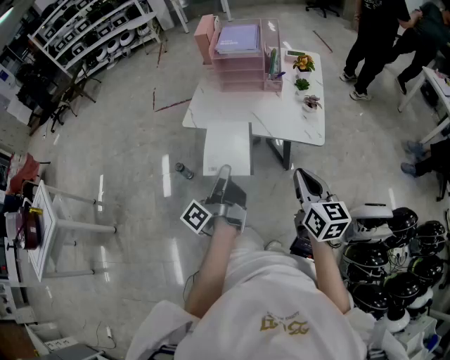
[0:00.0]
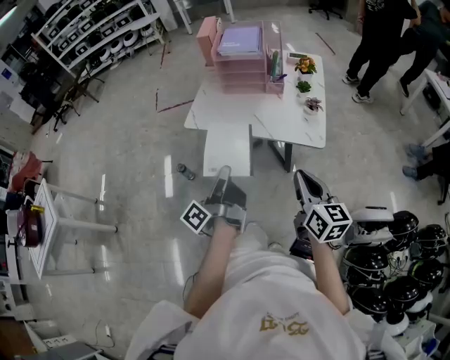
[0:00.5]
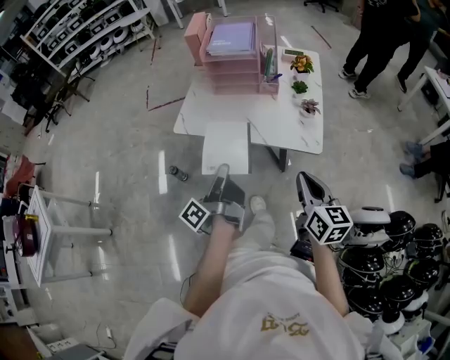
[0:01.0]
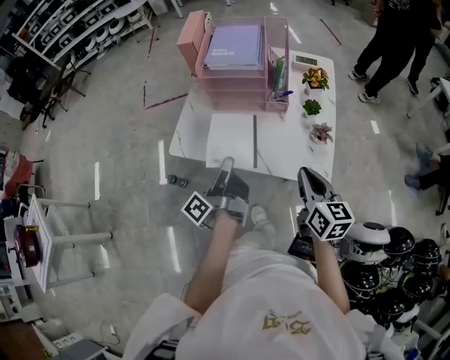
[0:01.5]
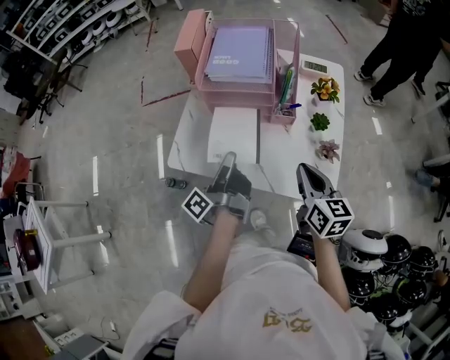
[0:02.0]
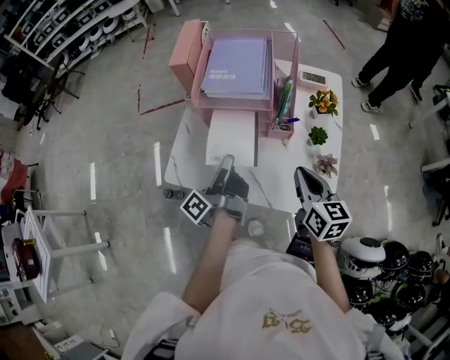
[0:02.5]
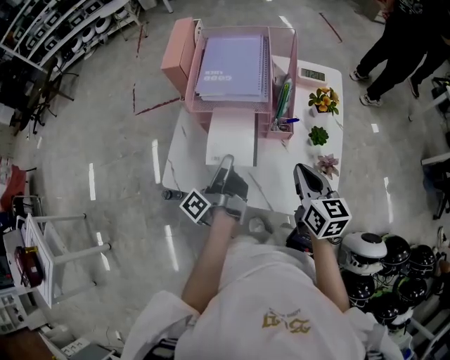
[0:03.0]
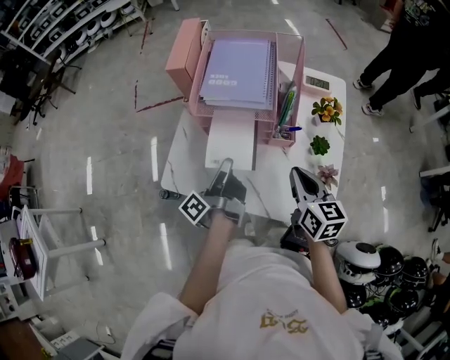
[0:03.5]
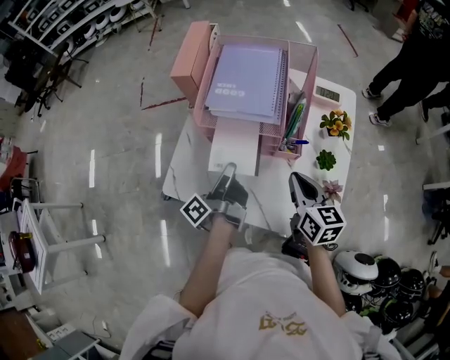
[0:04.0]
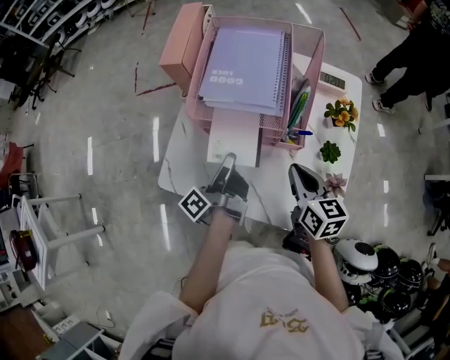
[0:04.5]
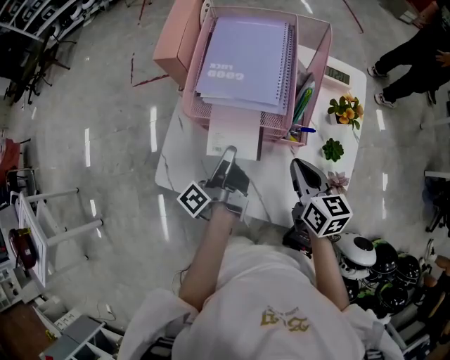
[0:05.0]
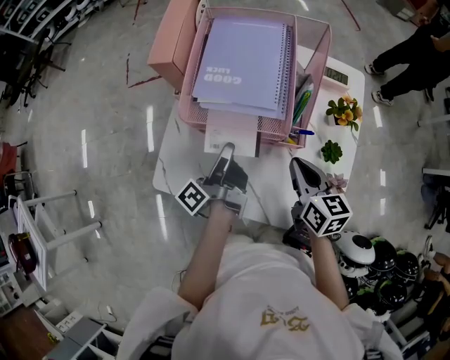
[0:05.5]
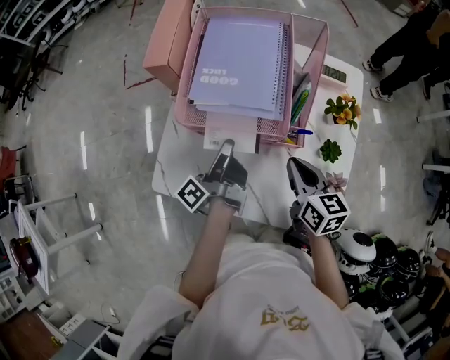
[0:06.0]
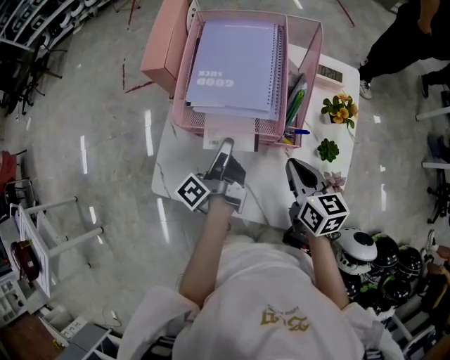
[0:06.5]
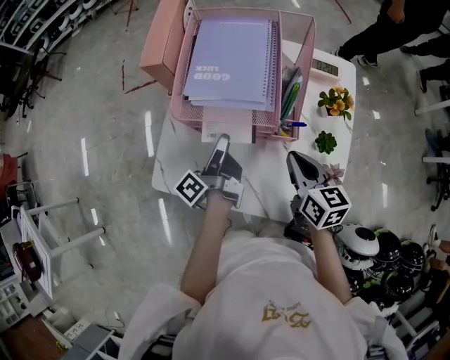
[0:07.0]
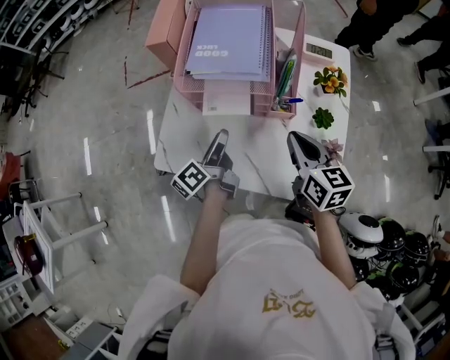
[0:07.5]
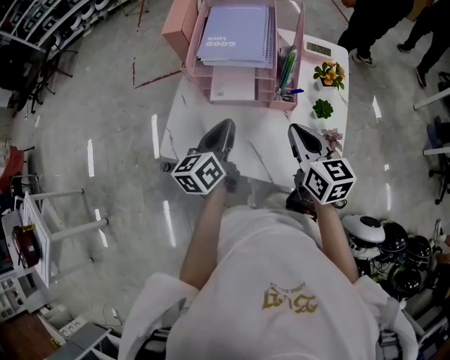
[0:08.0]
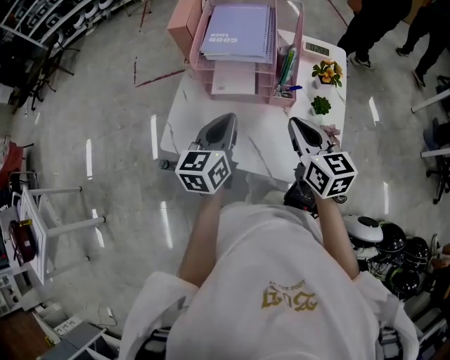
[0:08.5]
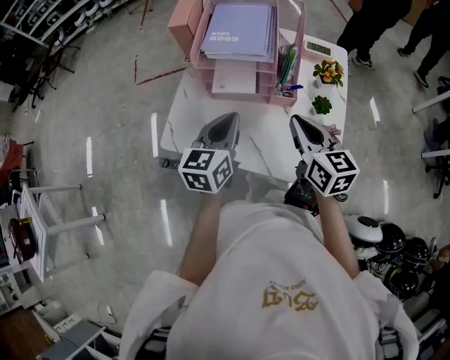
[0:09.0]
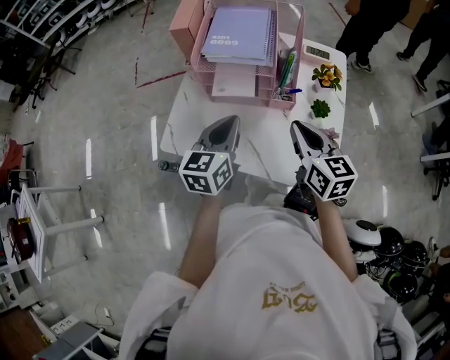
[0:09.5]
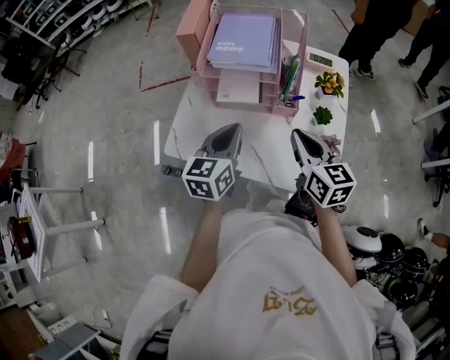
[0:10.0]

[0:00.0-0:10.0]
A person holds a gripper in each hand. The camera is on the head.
0:00.0 to 0:02.0: The right gripper changes place by some 35 cm.
0:02.0 to 0:04.0: The right gripper ends up about 15 cm from where it was.
0:04.0 to 0:06.0: The right gripper changes place by about 5 cm.
0:06.0 to 0:08.0: The right gripper moves about 10 cm.

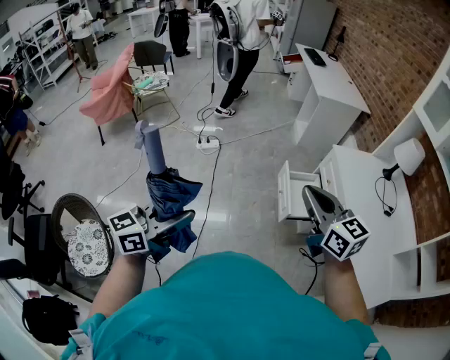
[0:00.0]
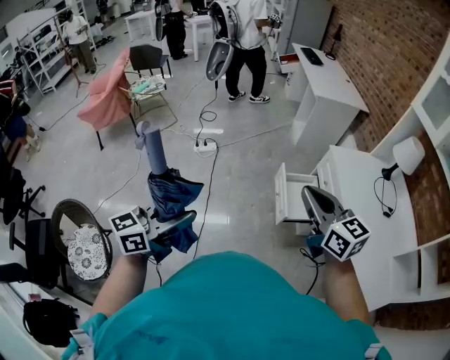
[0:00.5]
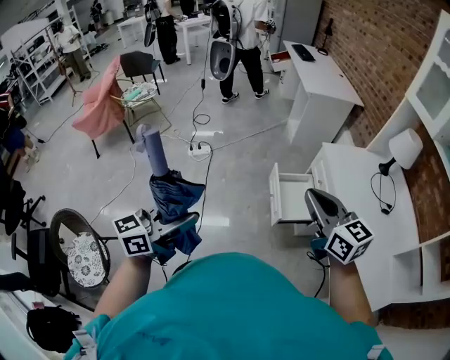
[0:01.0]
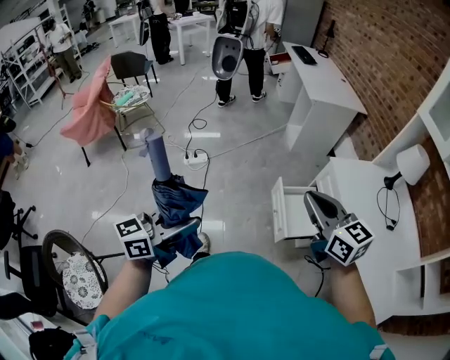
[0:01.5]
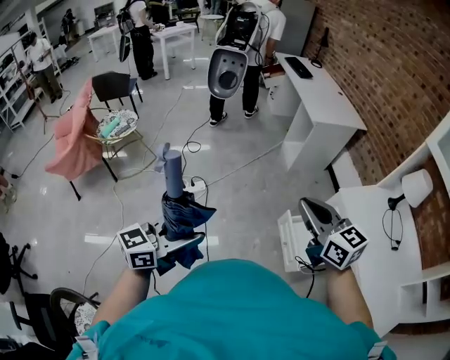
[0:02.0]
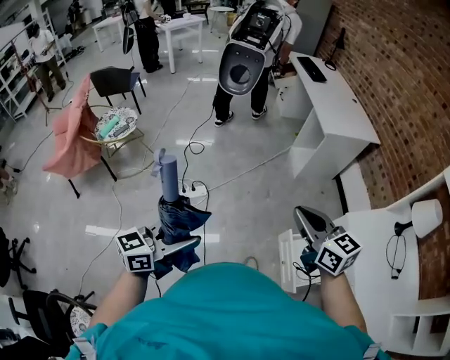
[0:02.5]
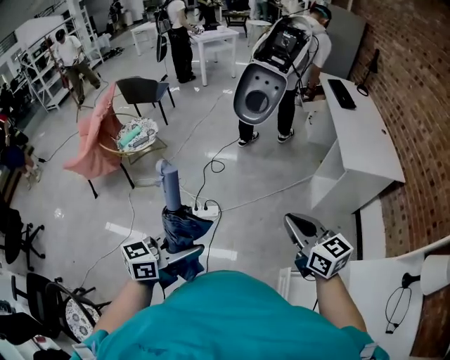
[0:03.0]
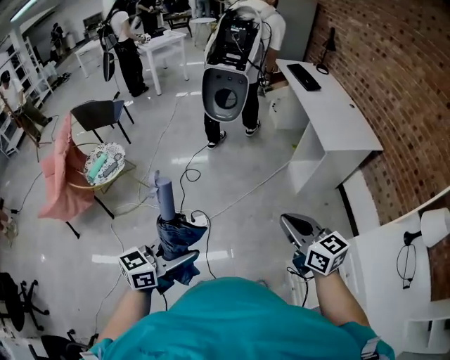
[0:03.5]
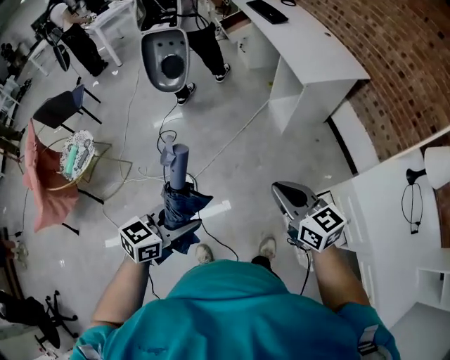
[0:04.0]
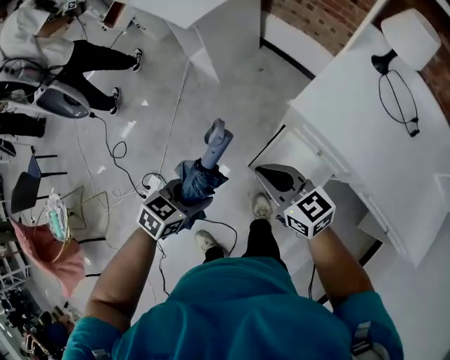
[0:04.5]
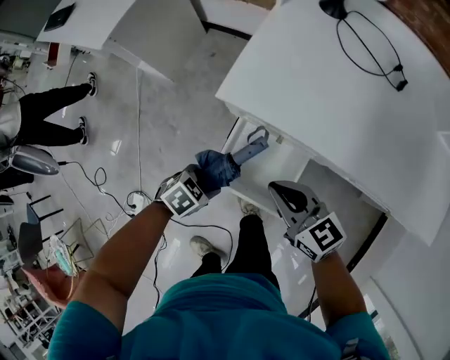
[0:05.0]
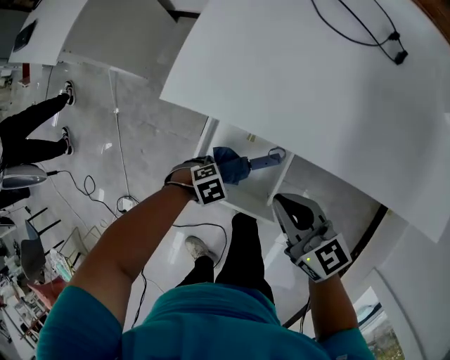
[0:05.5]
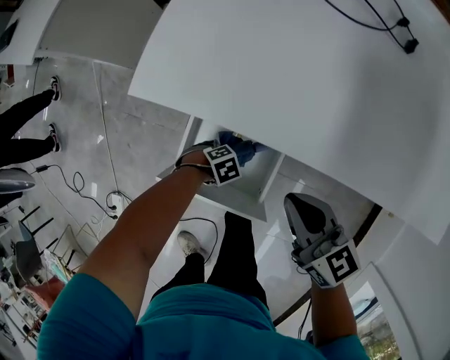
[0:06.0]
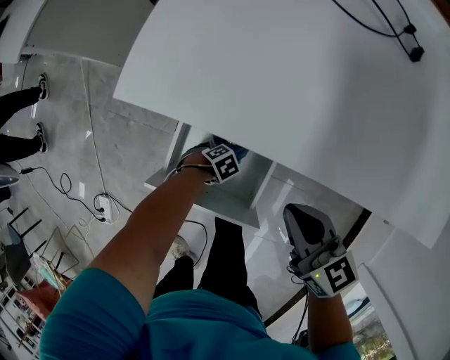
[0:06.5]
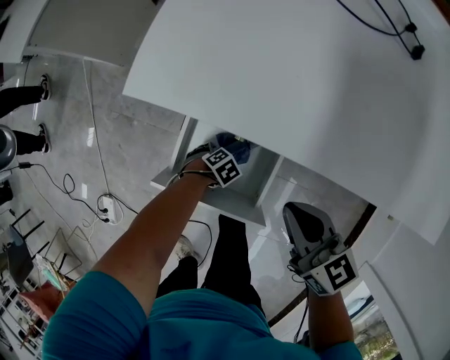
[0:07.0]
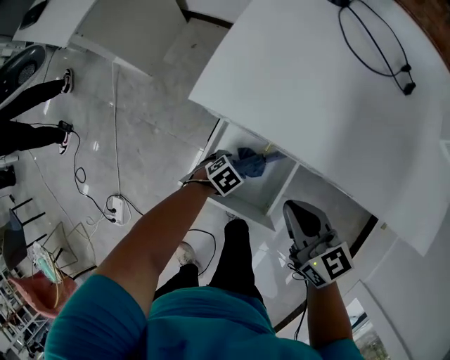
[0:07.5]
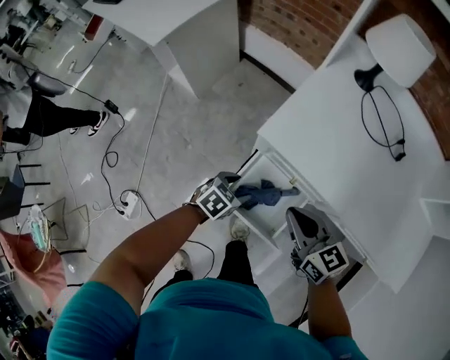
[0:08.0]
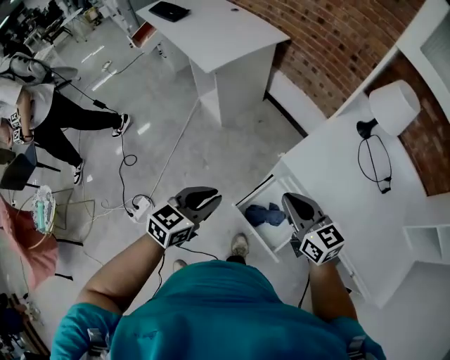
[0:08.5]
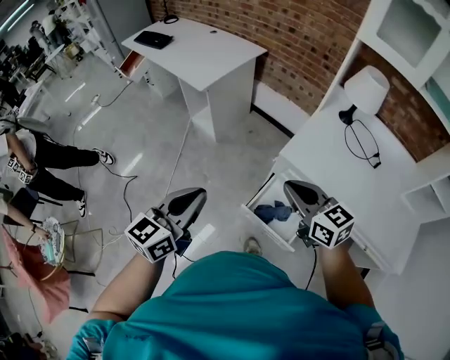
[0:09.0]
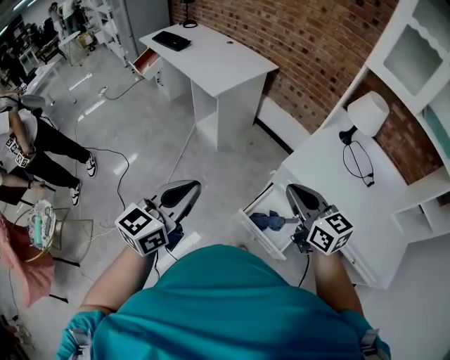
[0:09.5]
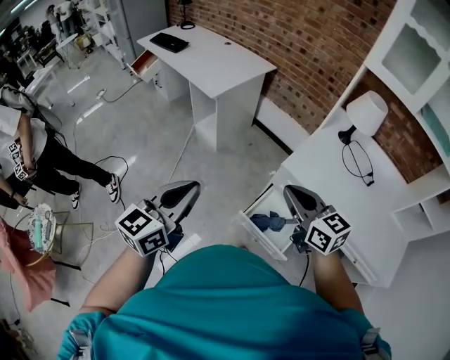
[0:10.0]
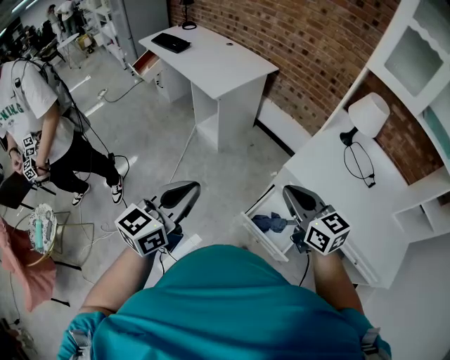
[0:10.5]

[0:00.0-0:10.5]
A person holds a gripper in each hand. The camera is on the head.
0:00.0 to 0:02.0: The right gripper travels forward and to the left by some 30 cm, while the left gripper is displaced forward by about 35 cm.
0:02.0 to 0:04.0: The left gripper shifts approximately 30 cm forward, and rotates about 20 degrees. The right gripper shifts some 30 cm forward and downward.
0:04.0 to 0:06.5: The two grippers travel together, some 50 cm. The left gripper goes about 60 cm downward, and tilts its fingers roughly 50 degrees downward; the right gripper swivels some 50 degrees.
0:06.5 to 0:08.5: The right gripper travels upward by about 25 cm, and swivels about 30 degrees; the left gripper shifts approximately 60 cm upward, tilts its fingers about 50 degrees upward, and closes its fingers.
0:08.5 to 0:10.5: The right gripper goes about 15 cm upward, to the left and backward. The left gripper is displaced upward and to the left by approximately 20 cm, and turns by approximately 20 degrees.

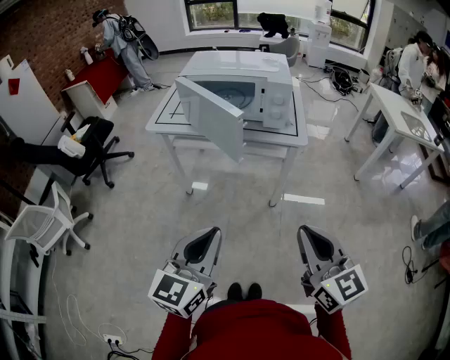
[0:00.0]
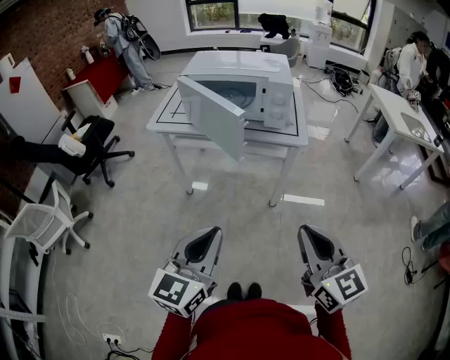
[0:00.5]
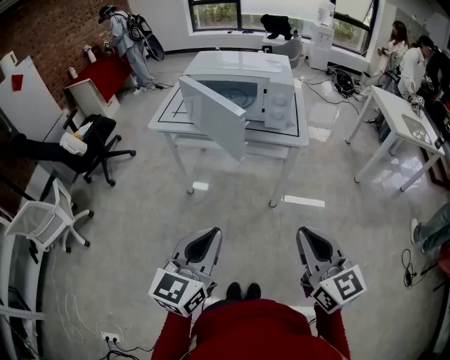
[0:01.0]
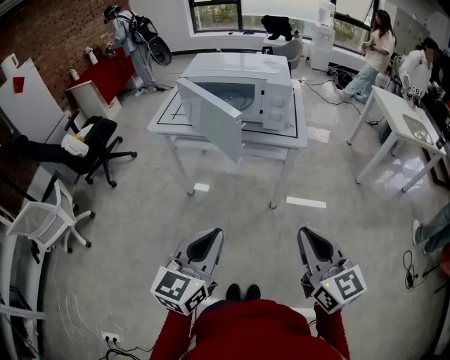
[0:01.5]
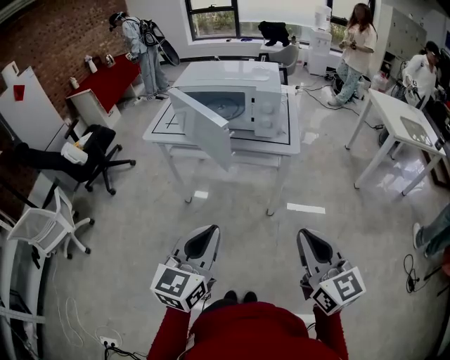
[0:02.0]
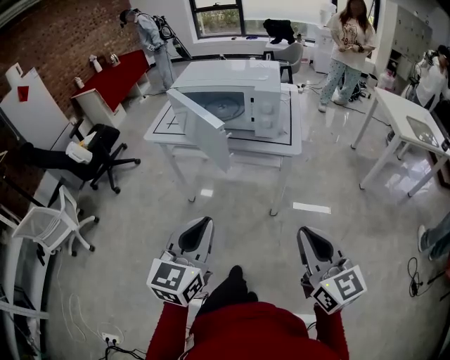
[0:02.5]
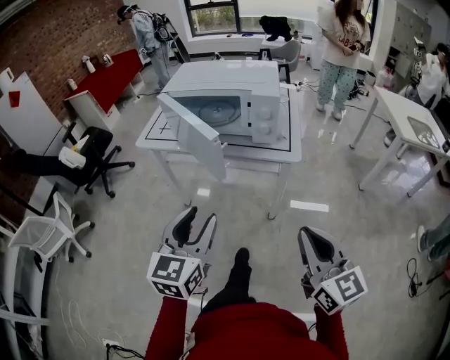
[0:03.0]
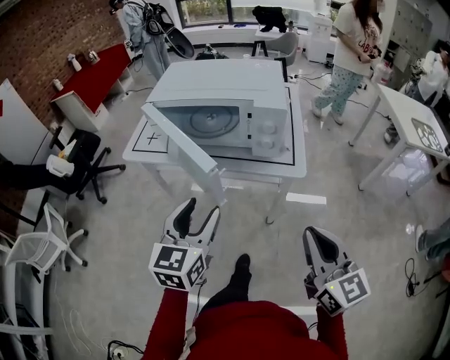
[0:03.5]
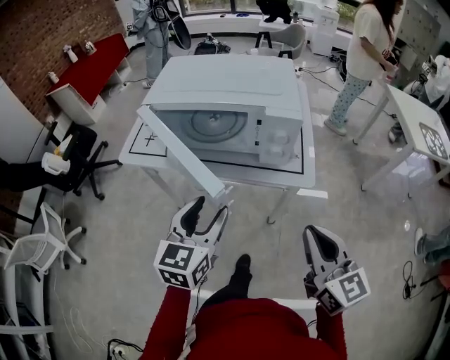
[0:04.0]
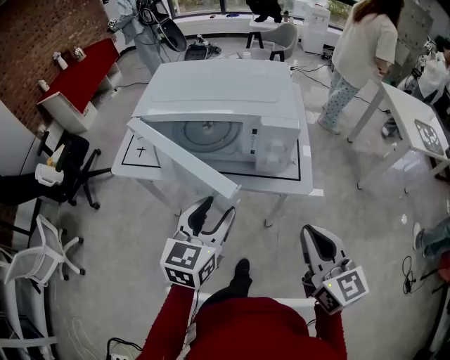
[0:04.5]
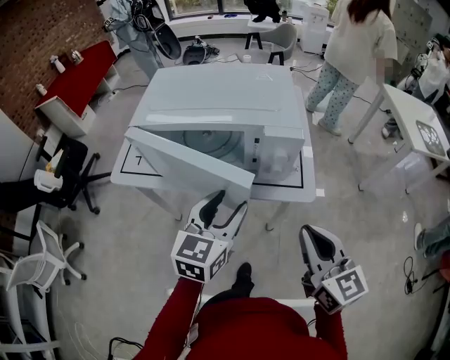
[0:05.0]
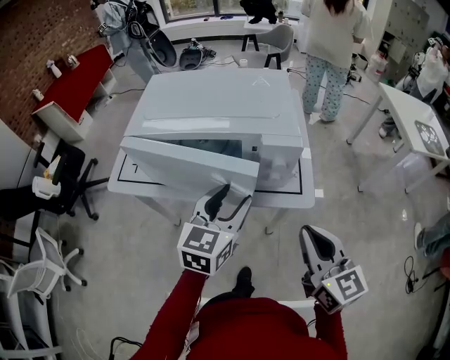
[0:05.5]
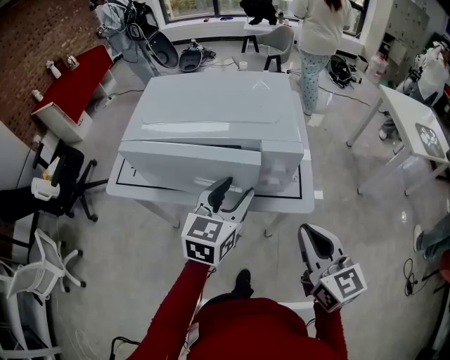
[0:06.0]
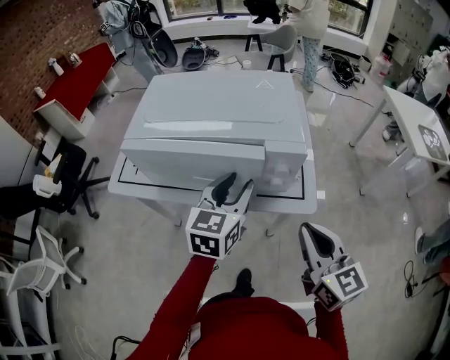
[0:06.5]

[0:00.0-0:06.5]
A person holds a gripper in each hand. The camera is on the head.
0:00.0 to 0:02.0: The grippers make only small movements.
0:02.0 to 0:04.5: The grippers both shift forward by approximately 25 cm. The left gripper opens.
0:04.5 to 0:06.5: The left gripper shifts roughly 10 cm forward. The right gripper travels forward by some 5 cm.
